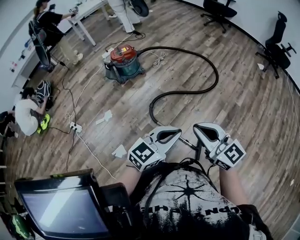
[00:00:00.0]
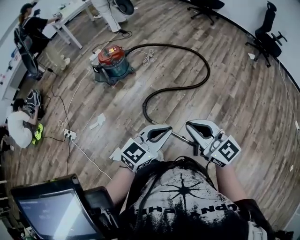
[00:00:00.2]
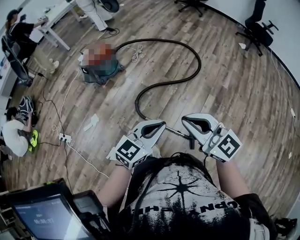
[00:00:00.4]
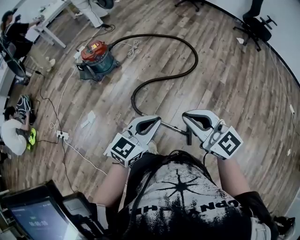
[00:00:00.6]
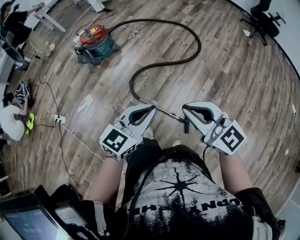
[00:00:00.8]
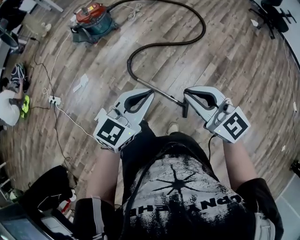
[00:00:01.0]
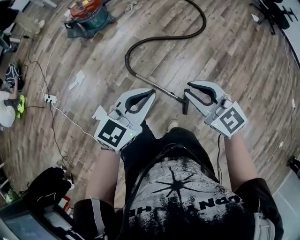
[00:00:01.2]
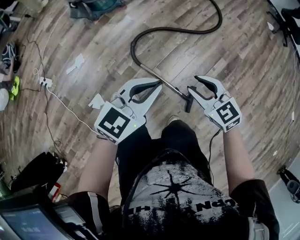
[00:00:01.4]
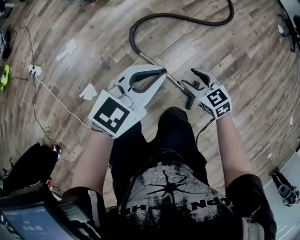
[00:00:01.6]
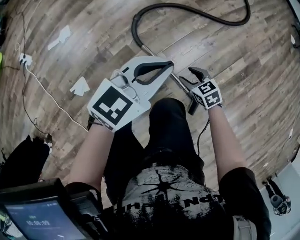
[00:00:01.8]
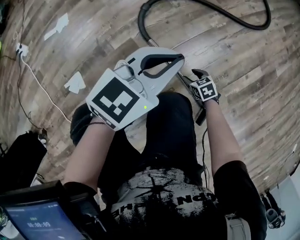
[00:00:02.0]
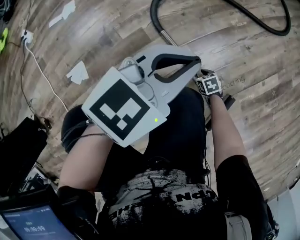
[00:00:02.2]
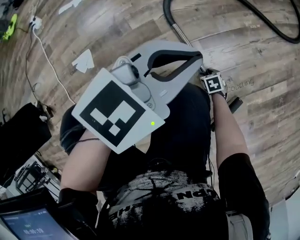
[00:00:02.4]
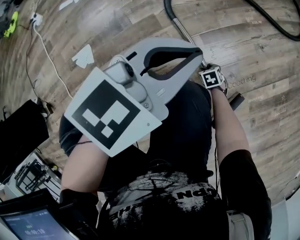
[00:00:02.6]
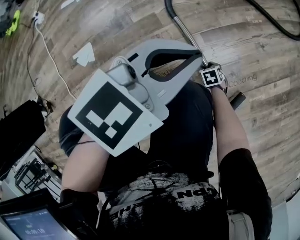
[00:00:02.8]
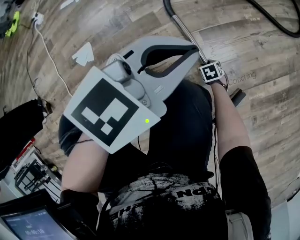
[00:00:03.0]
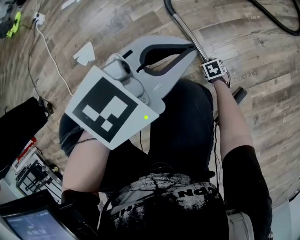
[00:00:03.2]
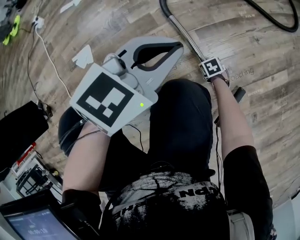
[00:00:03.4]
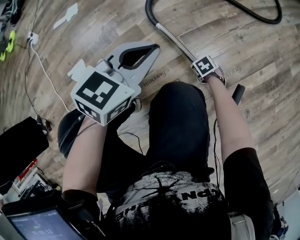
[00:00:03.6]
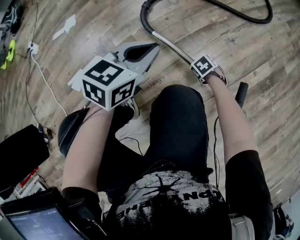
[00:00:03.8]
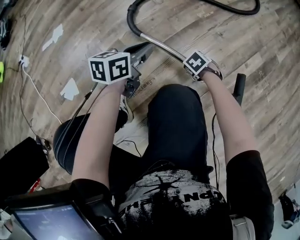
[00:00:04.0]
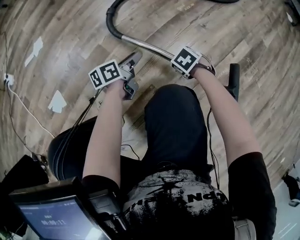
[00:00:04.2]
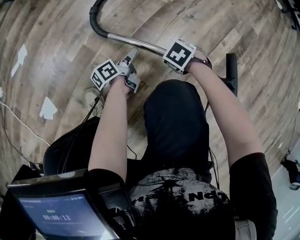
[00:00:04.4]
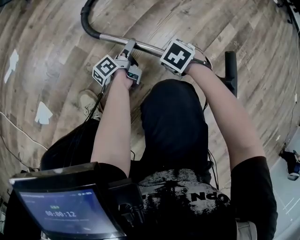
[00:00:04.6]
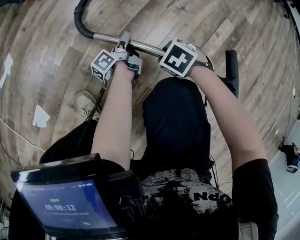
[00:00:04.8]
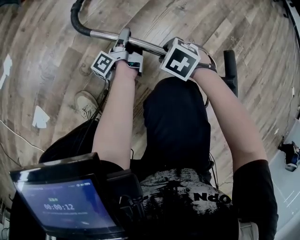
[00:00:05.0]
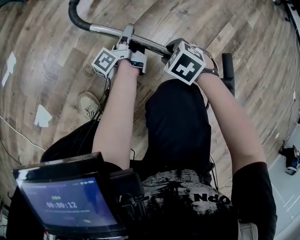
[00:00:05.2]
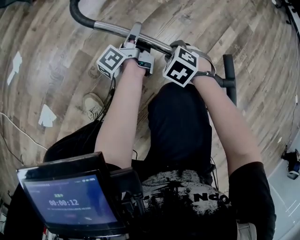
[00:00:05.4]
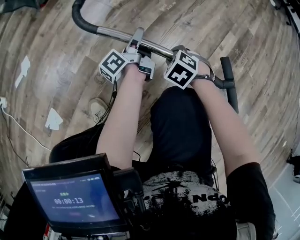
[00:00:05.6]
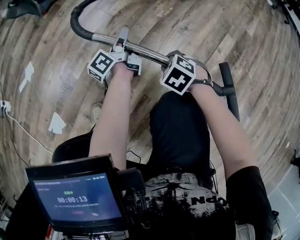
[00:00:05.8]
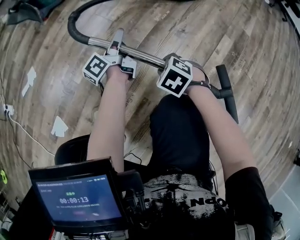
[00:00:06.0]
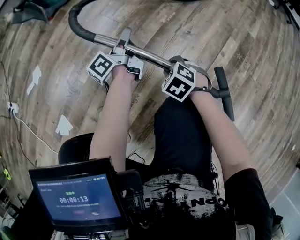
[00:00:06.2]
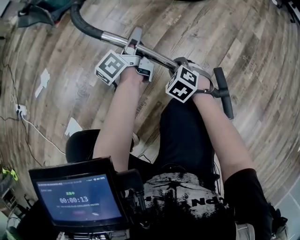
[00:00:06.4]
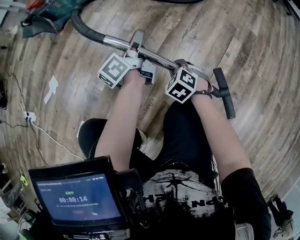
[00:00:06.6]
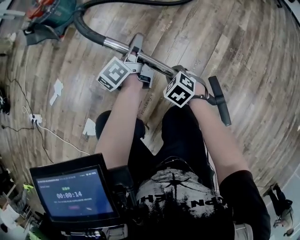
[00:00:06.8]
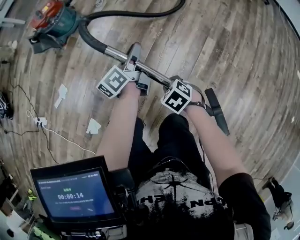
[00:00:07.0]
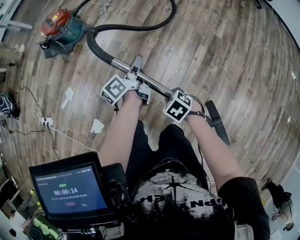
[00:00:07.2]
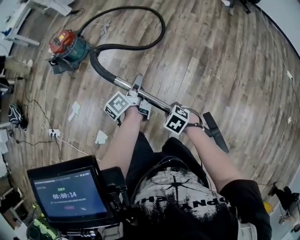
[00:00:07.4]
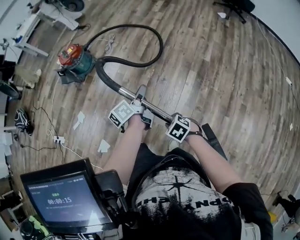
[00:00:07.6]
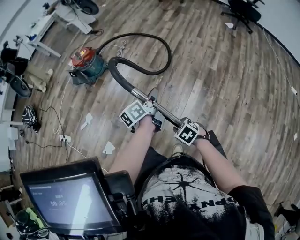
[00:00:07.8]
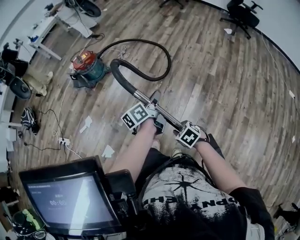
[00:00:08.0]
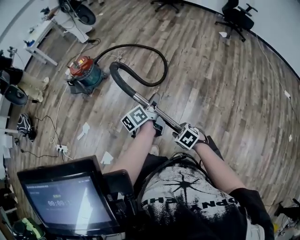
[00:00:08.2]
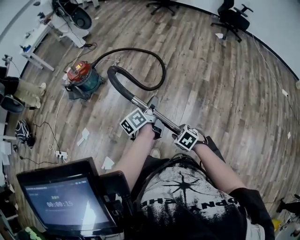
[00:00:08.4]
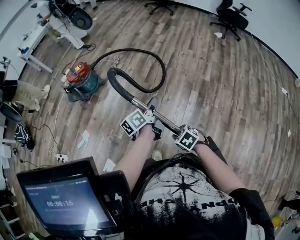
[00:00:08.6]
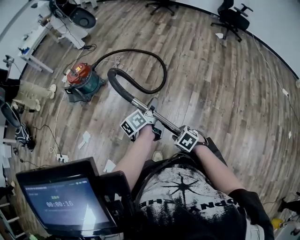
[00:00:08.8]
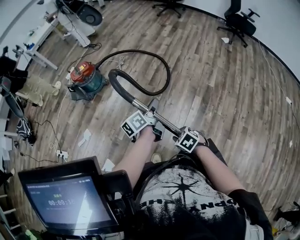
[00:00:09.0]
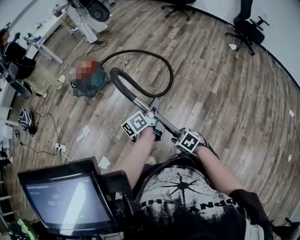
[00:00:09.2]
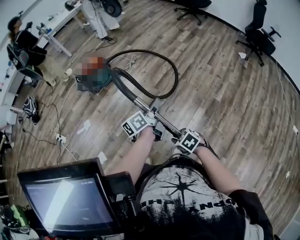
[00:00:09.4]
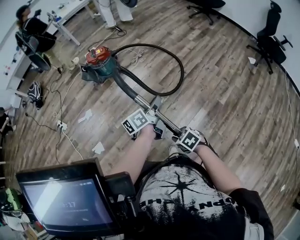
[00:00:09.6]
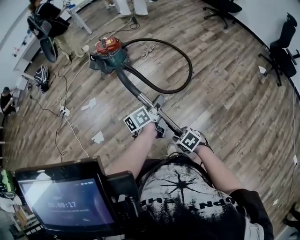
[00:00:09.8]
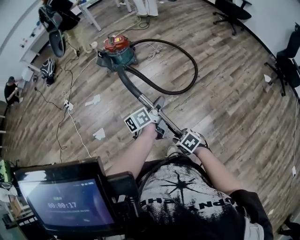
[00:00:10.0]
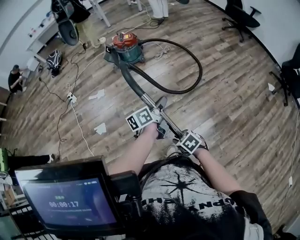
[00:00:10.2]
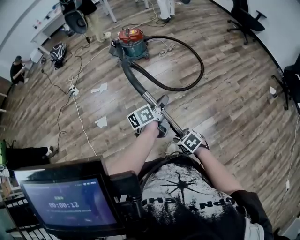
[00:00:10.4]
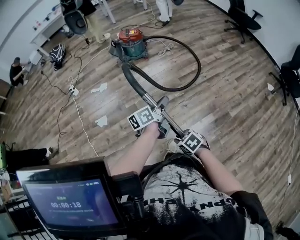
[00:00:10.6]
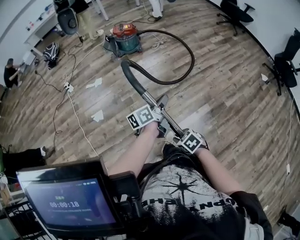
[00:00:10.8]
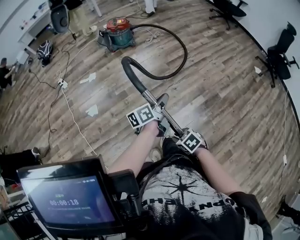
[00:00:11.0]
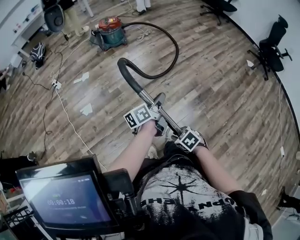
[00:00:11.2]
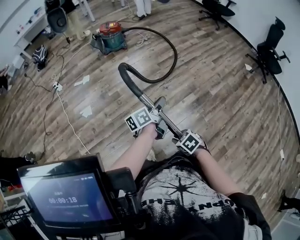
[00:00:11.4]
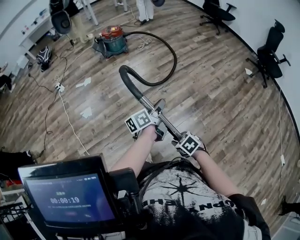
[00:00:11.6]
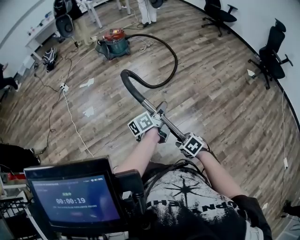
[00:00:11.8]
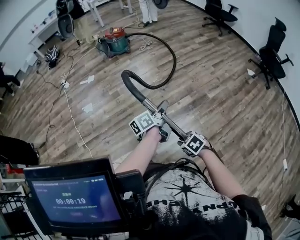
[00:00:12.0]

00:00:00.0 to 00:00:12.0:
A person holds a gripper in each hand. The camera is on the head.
00:00:00.0 to 00:00:01.6: The right gripper goes approximately 50 cm downward, points its fingers roughly 40 degrees further downward, and opens its fingers. The left gripper is displaced downward and forward by about 25 cm.
00:00:01.6 to 00:00:03.0: The right gripper shifts roughly 60 cm downward, and tilts its fingers some 40 degrees downward, while the left gripper shifts approximately 30 cm downward.
00:00:03.0 to 00:00:04.4: The right gripper goes roughly 15 cm upward, while the left gripper shifts approximately 30 cm downward, rotates around the line of its fingers by roughly 80 degrees, counterclockwise from behind, and opens its fingers.
00:00:04.4 to 00:00:06.0: The left gripper travels upward by approximately 20 cm, swivels about 30 degrees, and closes; the right gripper heads upward, covering some 10 cm.
00:00:06.0 to 00:00:07.6: The grippers both shift upward by about 50 cm. The left gripper turns by some 20 degrees. Meanwhile the right gripper turns by approximately 20 degrees.
00:00:07.6 to 00:00:09.0: The grippers both shift forward by roughly 5 cm.
00:00:09.0 to 00:00:10.4: The left gripper shifts by some 5 cm, and changes its angle by approximately 30 degrees, while the right gripper shifts by roughly 10 cm, and changes its angle by approximately 30 degrees.
00:00:10.4 to 00:00:12.0: Both grippers are carried backward, some 40 cm.

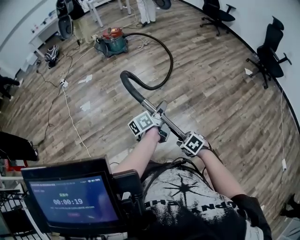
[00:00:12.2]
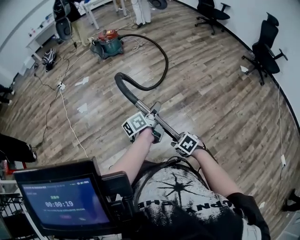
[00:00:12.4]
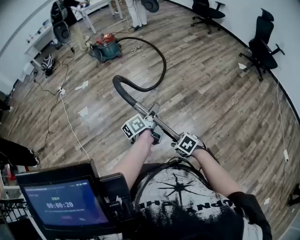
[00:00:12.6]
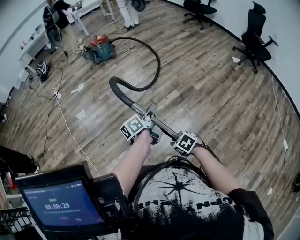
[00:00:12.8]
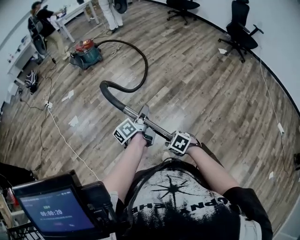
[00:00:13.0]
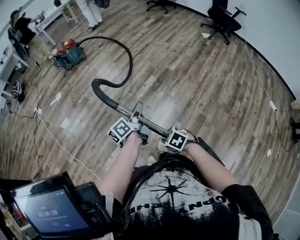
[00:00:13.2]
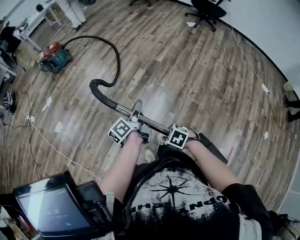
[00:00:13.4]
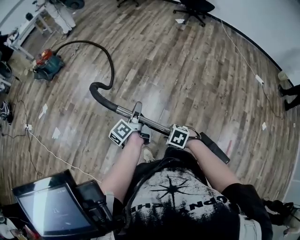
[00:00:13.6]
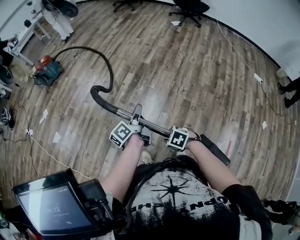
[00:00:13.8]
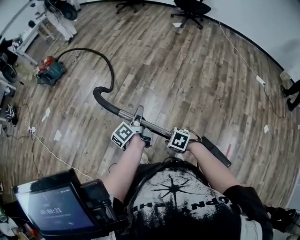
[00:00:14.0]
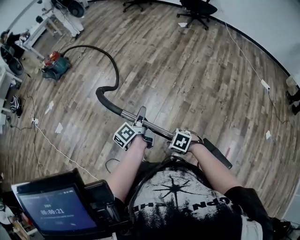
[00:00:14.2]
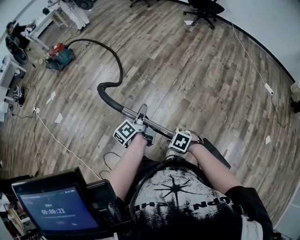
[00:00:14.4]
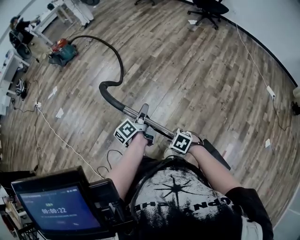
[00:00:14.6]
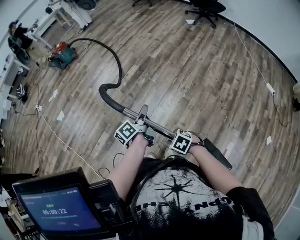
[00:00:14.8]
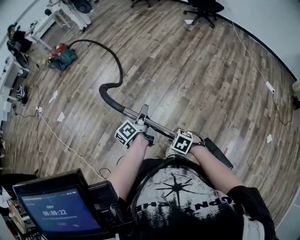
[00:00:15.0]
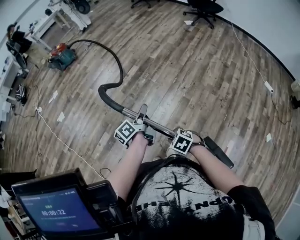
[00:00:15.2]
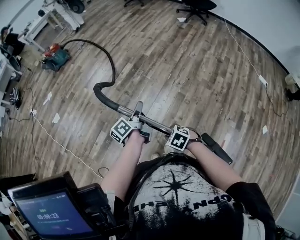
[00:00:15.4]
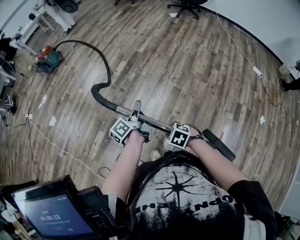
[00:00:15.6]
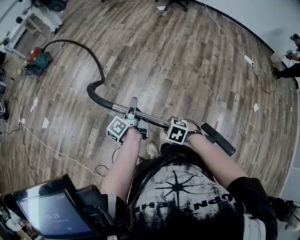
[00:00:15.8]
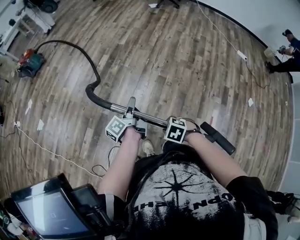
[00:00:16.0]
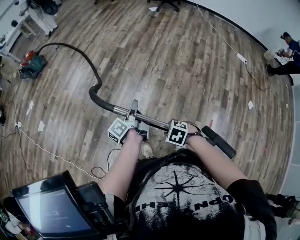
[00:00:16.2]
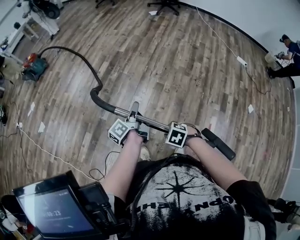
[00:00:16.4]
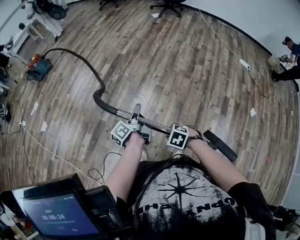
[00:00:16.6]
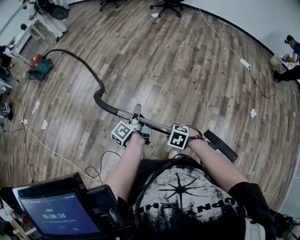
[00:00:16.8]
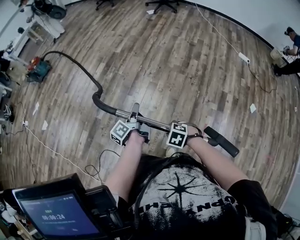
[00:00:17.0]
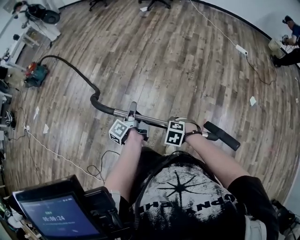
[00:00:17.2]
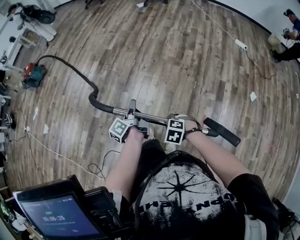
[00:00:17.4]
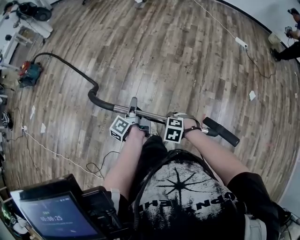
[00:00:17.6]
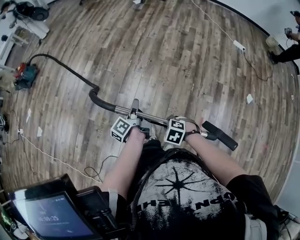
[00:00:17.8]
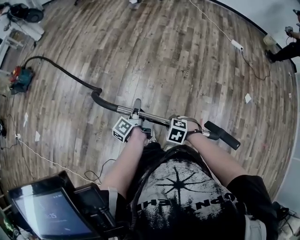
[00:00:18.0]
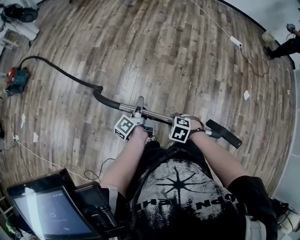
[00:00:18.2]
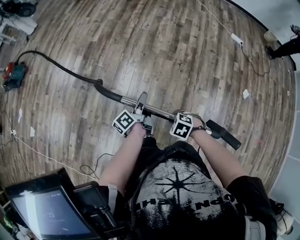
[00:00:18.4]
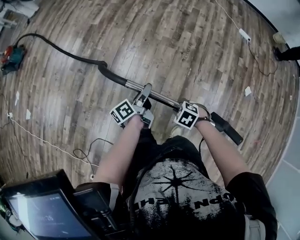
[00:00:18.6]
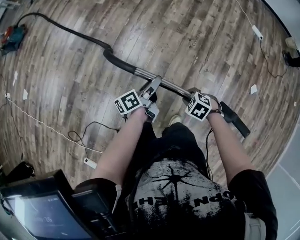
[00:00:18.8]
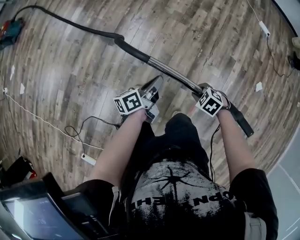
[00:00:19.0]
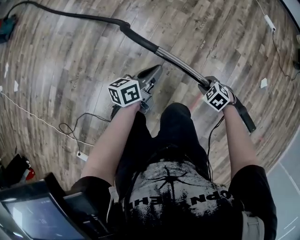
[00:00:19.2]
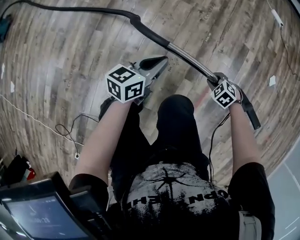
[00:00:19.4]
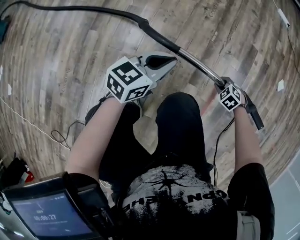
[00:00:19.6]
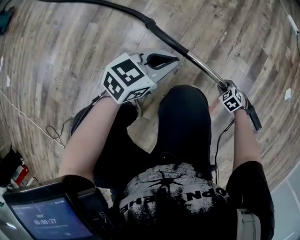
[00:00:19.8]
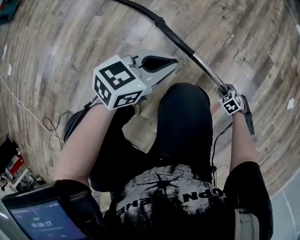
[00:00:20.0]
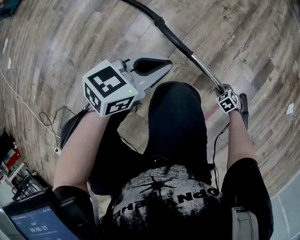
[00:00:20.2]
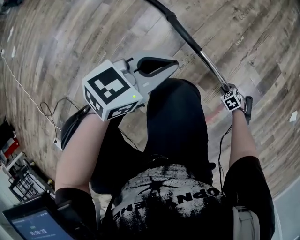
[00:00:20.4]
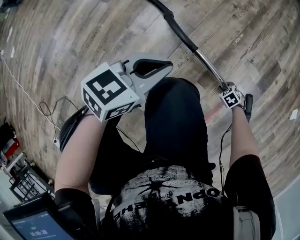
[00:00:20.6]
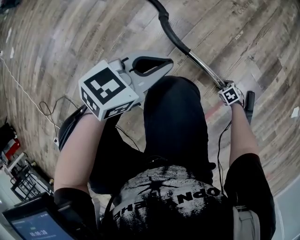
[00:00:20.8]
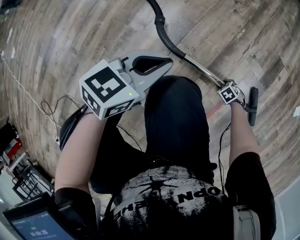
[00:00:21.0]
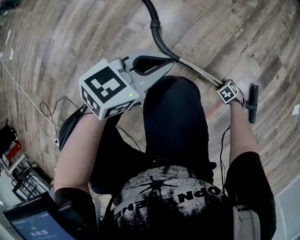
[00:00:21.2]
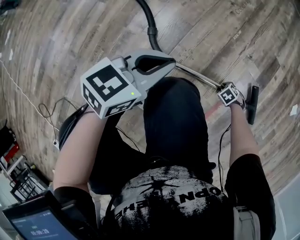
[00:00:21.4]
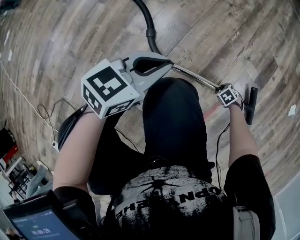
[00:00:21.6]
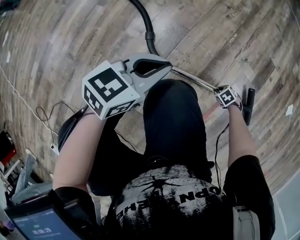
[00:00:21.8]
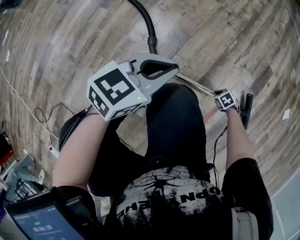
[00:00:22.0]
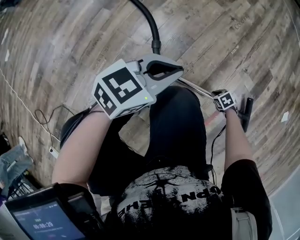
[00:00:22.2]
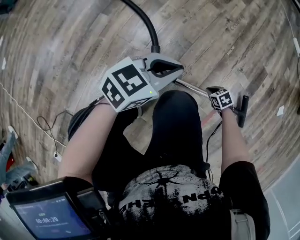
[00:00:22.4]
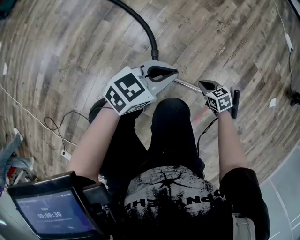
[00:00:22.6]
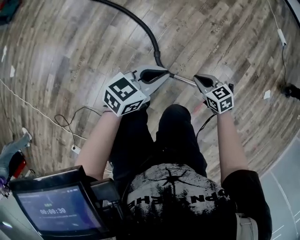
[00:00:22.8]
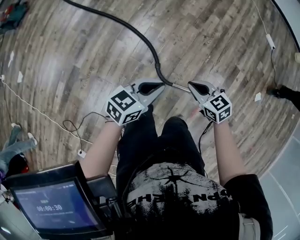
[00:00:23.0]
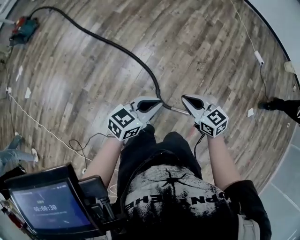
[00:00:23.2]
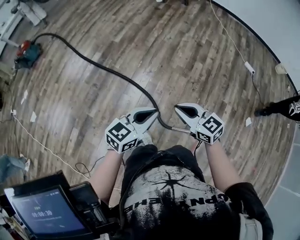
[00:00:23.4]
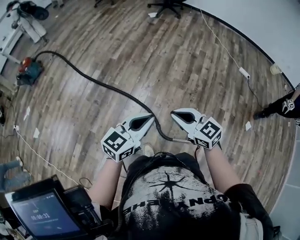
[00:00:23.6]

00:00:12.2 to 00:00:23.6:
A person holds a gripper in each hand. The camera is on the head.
00:00:12.2 to 00:00:13.6: Both grippers travel together backward, roughly 20 cm.
00:00:13.6 to 00:00:15.0: The two grippers go approximately 25 cm backward and to the right.
00:00:15.0 to 00:00:16.4: The right gripper moves some 10 cm; the left gripper ends up about 10 cm from where it was.
00:00:16.4 to 00:00:17.8: Both grippers travel together to the right, approximately 20 cm.
00:00:17.8 to 00:00:19.4: The grippers both shift downward by some 30 cm. The left gripper swivels approximately 60 degrees, and opens, then closes once more.
00:00:19.4 to 00:00:20.8: The left gripper travels downward by some 15 cm. Meanwhile the right gripper shifts approximately 35 cm downward, and opens up.
00:00:20.8 to 00:00:22.2: The right gripper ends up about 5 cm from where it was, and closes its fingers.
00:00:22.2 to 00:00:23.6: The left gripper heads upward, covering approximately 50 cm; the right gripper is displaced upward by some 90 cm, and tilts its fingers roughly 60 degrees upward.
